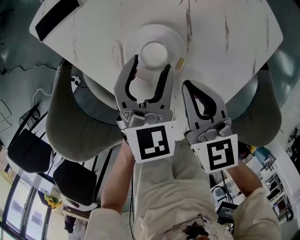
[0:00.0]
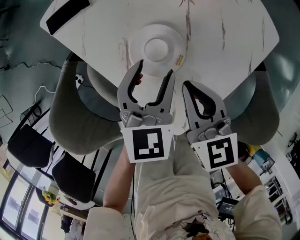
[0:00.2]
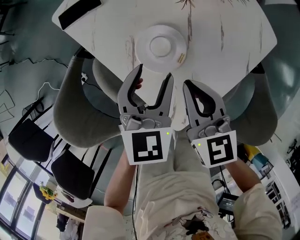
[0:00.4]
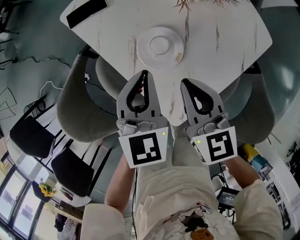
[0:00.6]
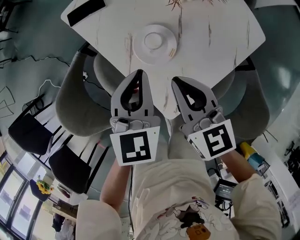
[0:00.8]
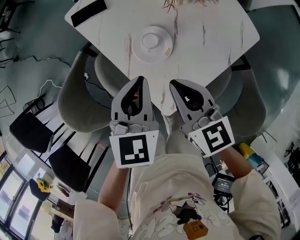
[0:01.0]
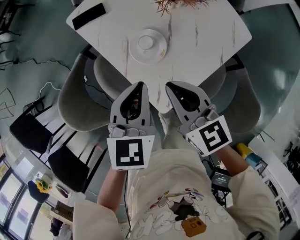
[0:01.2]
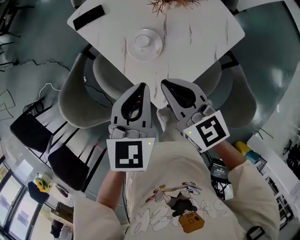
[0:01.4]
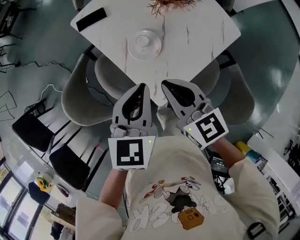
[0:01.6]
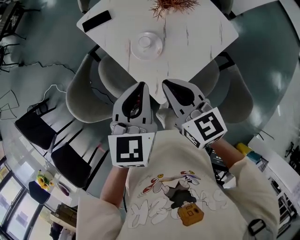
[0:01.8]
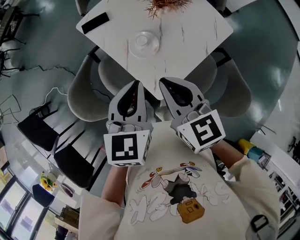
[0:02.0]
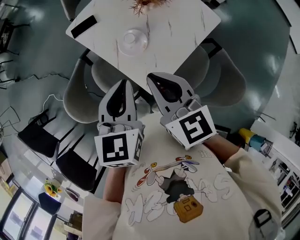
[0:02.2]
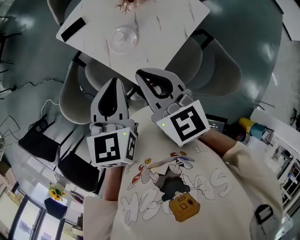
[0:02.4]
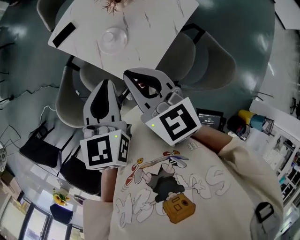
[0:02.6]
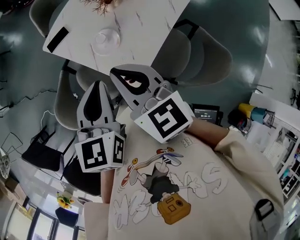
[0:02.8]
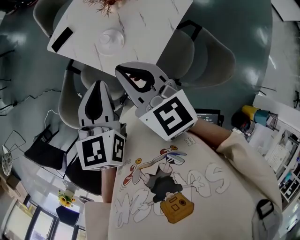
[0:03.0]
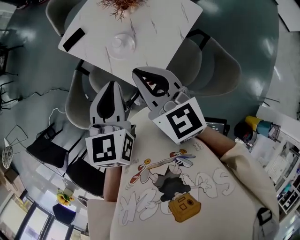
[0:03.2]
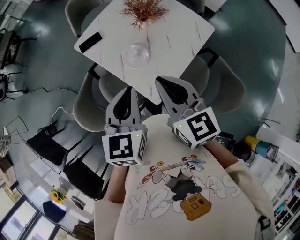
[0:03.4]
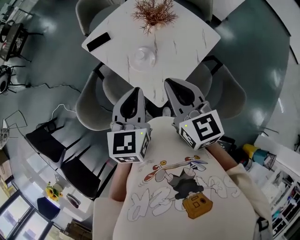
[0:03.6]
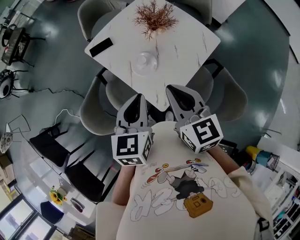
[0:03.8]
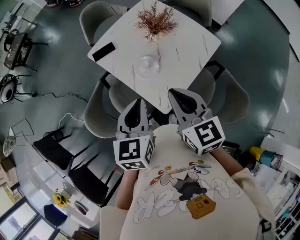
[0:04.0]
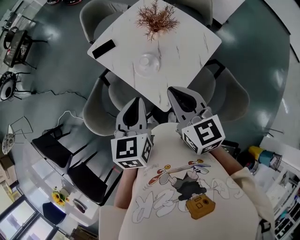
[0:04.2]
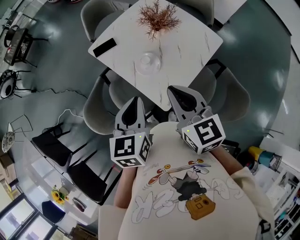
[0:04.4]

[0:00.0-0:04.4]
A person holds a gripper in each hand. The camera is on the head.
0:00.0 to 0:01.4: The left gripper goes about 25 cm upward and backward, and closes its fingers, while the right gripper is displaced upward by some 20 cm.
0:01.4 to 0:03.0: Both grippers travel together upward and backward, about 15 cm.
0:03.0 to 0:04.4: The grippers stay close to where they were, moving slightly.

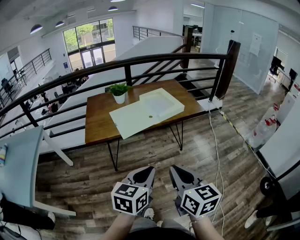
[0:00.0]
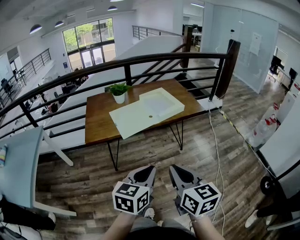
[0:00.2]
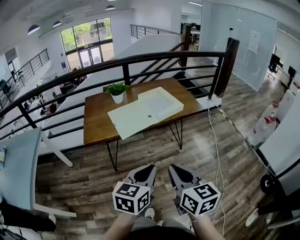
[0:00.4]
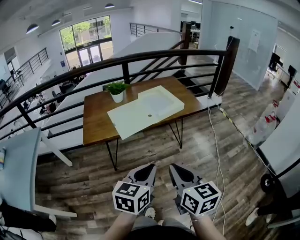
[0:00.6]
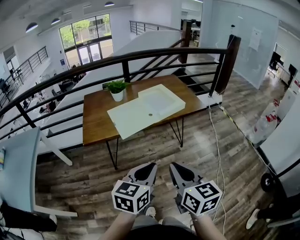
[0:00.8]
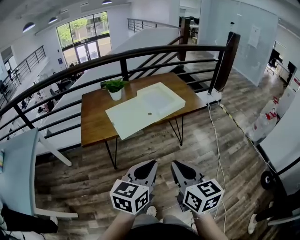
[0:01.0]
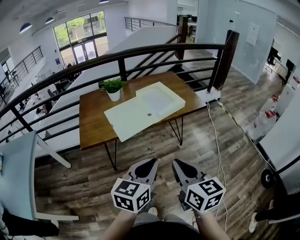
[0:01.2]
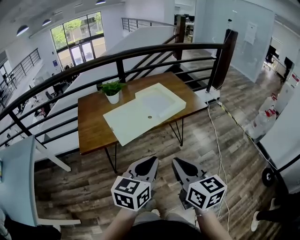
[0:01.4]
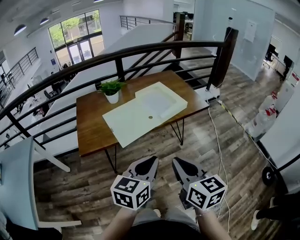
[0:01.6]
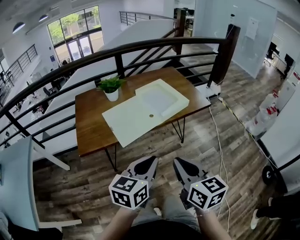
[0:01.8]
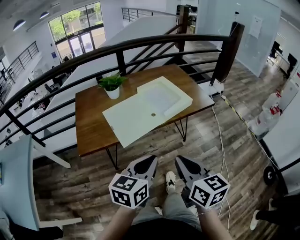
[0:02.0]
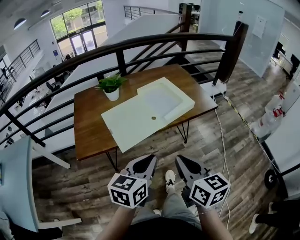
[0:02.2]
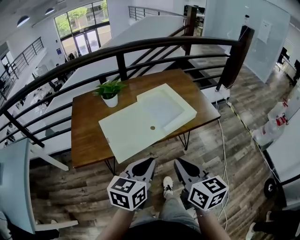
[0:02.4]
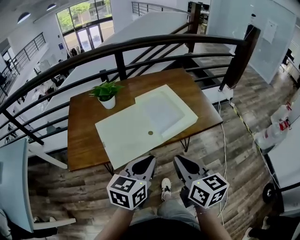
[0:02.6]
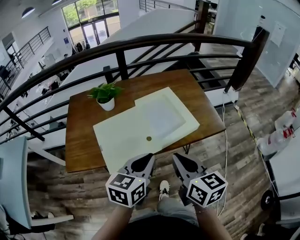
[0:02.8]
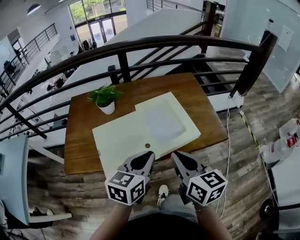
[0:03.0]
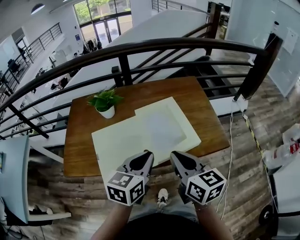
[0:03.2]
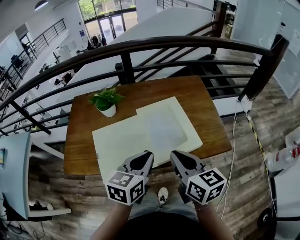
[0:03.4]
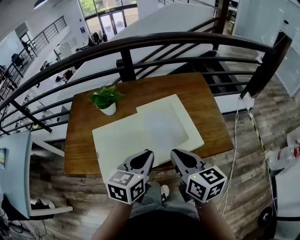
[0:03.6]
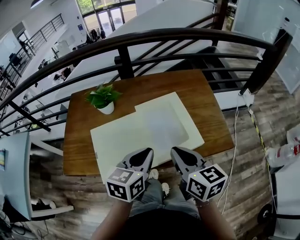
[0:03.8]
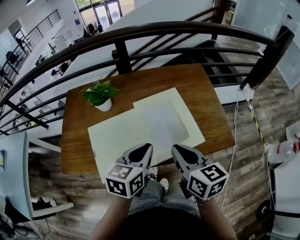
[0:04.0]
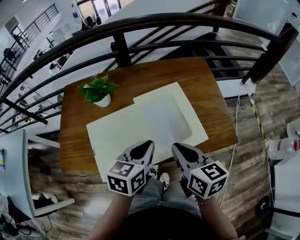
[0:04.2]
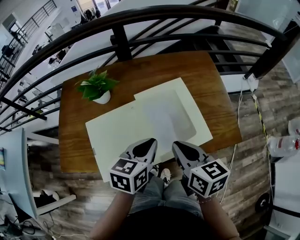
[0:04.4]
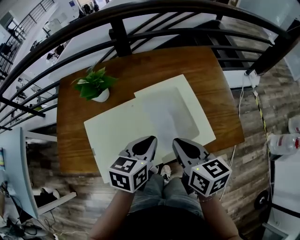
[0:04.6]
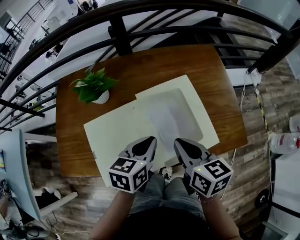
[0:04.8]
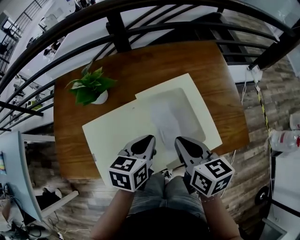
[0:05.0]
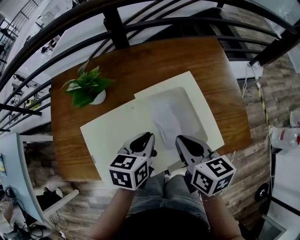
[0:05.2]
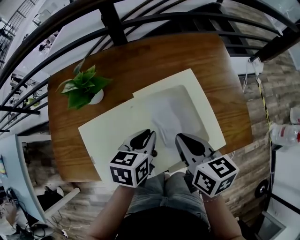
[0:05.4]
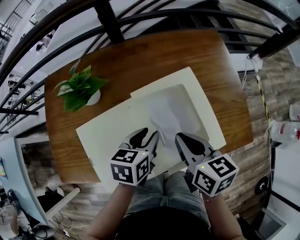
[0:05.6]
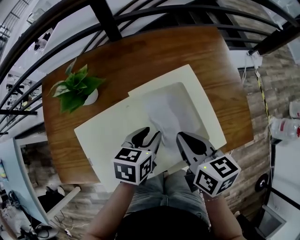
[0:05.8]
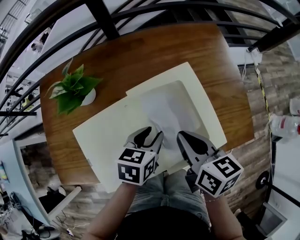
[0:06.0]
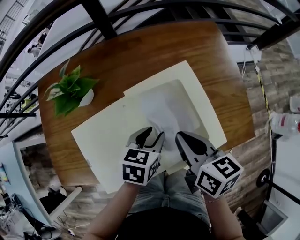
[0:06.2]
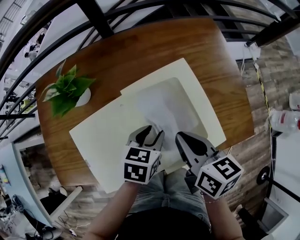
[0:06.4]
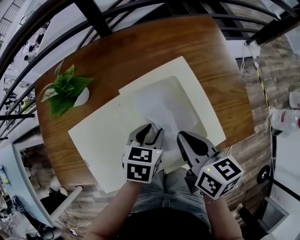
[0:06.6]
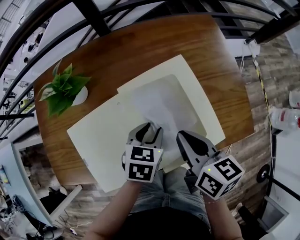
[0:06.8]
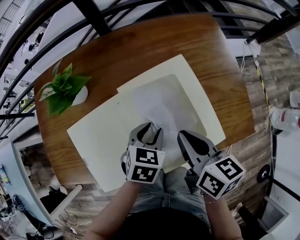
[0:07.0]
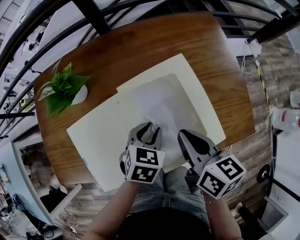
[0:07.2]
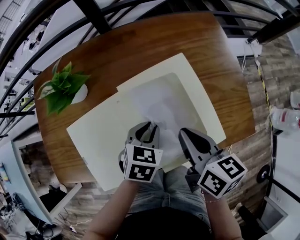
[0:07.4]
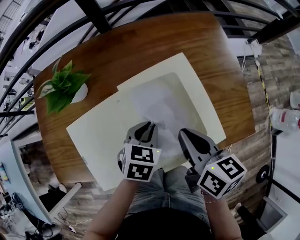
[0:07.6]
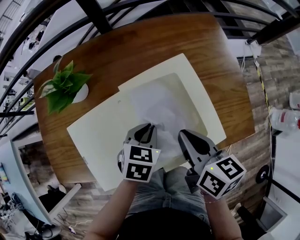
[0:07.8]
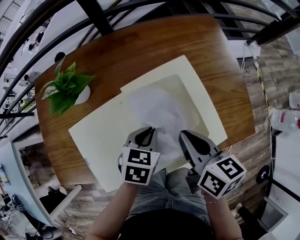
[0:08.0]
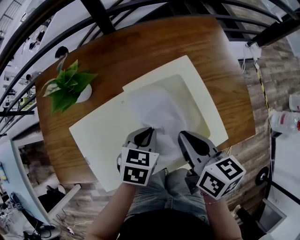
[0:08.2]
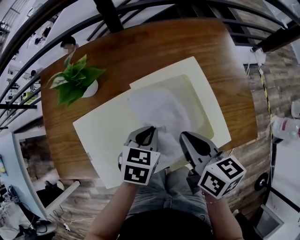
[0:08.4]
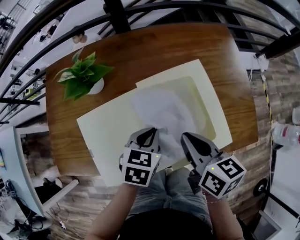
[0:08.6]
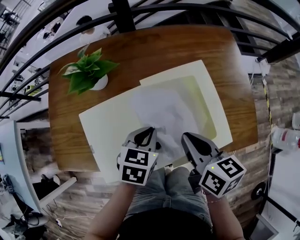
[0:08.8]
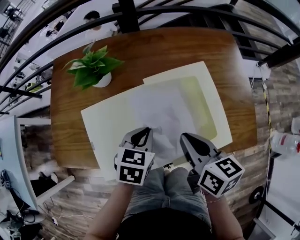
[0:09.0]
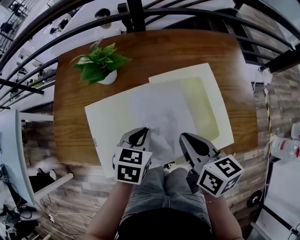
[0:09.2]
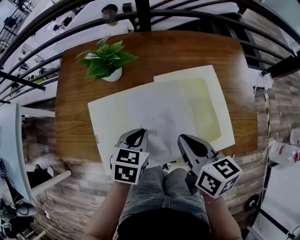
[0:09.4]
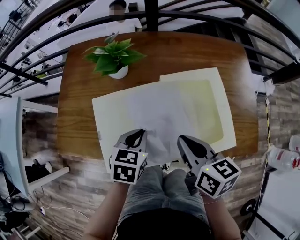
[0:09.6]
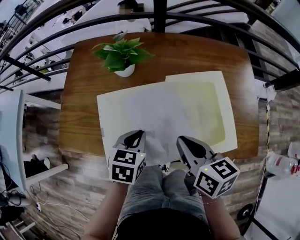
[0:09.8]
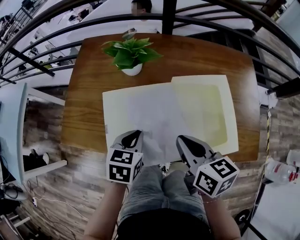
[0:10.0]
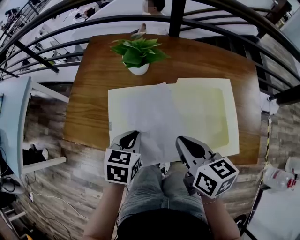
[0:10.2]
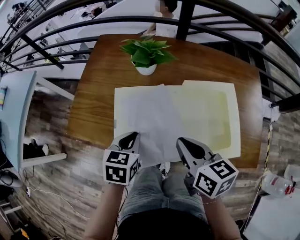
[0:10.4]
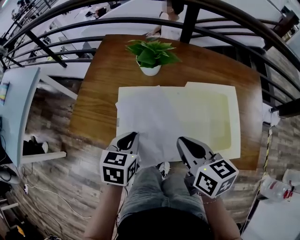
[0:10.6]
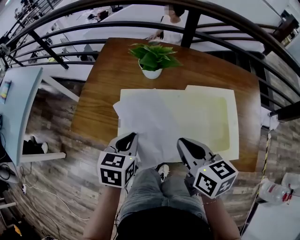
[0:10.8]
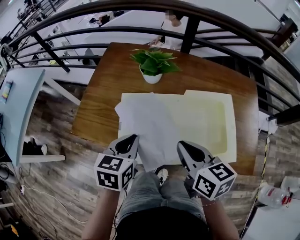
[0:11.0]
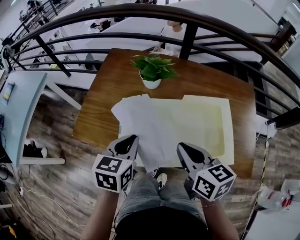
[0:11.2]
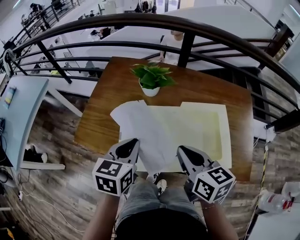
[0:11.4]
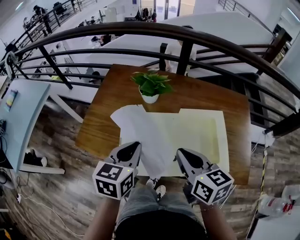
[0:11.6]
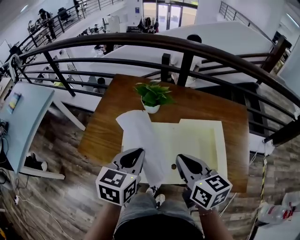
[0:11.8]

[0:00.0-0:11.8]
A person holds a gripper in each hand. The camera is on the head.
0:00.0 to 0:01.4: Both grippers move forward, some 10 cm.
0:01.4 to 0:03.0: Both grippers move forward, roughly 30 cm.
0:03.0 to 0:04.4: The grippers both shift forward and downward by roughly 10 cm.
0:04.4 to 0:06.0: The left gripper is displaced downward and forward by about 10 cm, and opens, while the right gripper shifts approximately 5 cm forward.
0:07.4 to 0:08.8: The left gripper is displaced to the left by some 5 cm.
0:08.8 to 0:10.4: Both grippers travel together to the left, some 15 cm. The left gripper swivels some 20 degrees, while the right gripper swivels roughly 20 degrees.
0:10.4 to 0:11.8: The right gripper shifts about 10 cm upward, while the left gripper heads upward, covering about 15 cm.

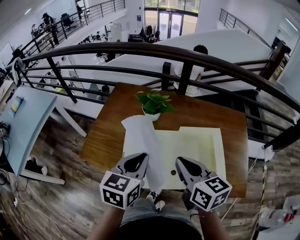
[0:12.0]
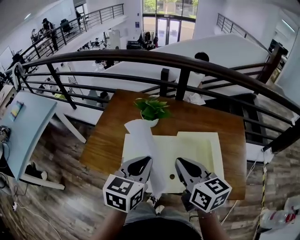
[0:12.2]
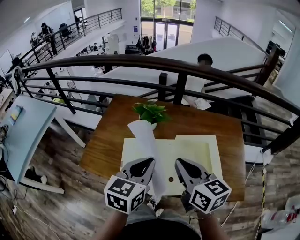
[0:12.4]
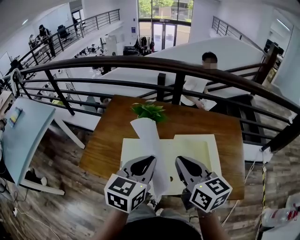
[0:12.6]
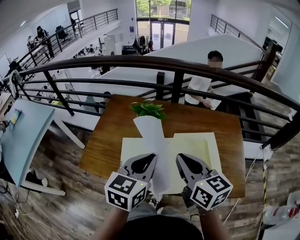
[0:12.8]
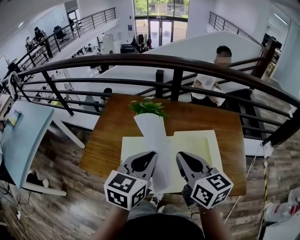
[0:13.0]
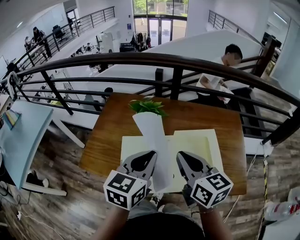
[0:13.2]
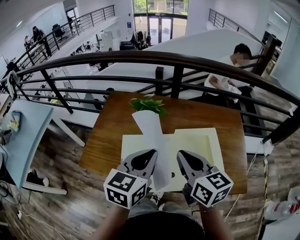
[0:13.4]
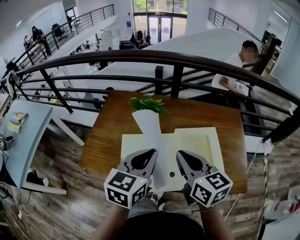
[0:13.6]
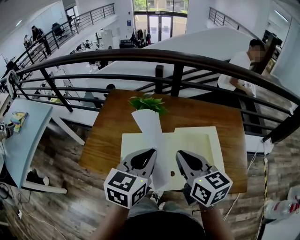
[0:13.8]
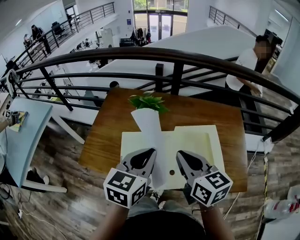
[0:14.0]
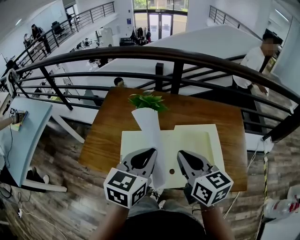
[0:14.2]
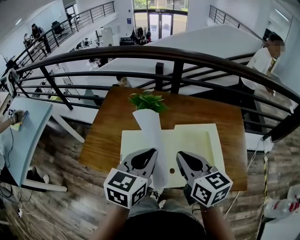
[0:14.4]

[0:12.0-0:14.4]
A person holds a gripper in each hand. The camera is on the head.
0:12.0 to 0:13.2: The left gripper shifts by roughly 5 cm.
0:13.2 to 0:14.4: The grippers make only small movements.

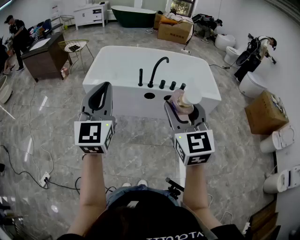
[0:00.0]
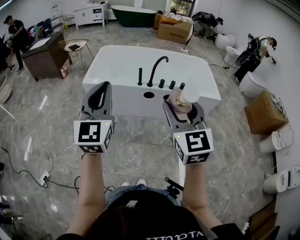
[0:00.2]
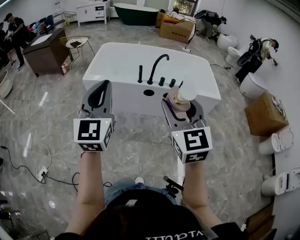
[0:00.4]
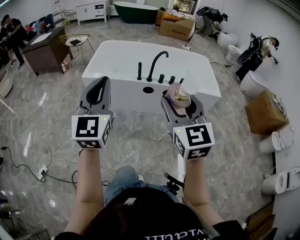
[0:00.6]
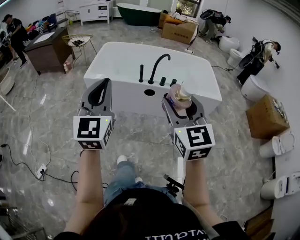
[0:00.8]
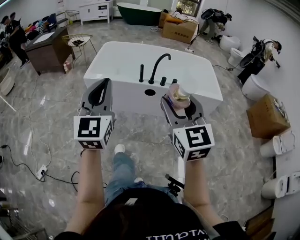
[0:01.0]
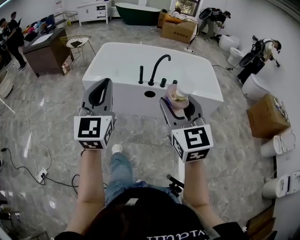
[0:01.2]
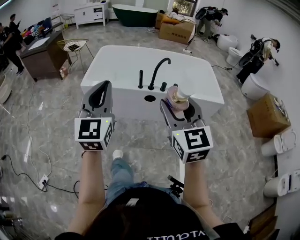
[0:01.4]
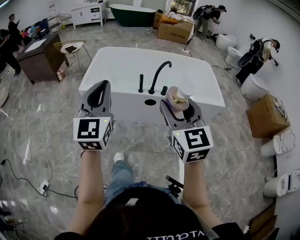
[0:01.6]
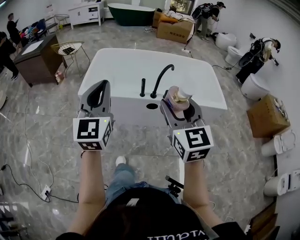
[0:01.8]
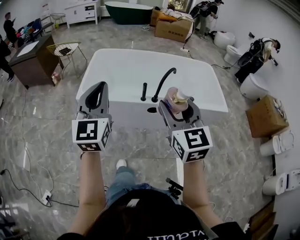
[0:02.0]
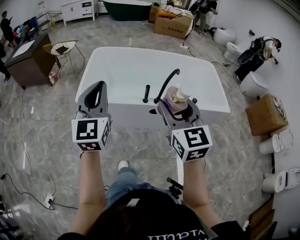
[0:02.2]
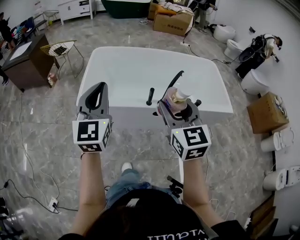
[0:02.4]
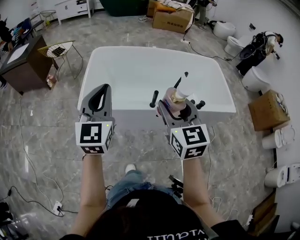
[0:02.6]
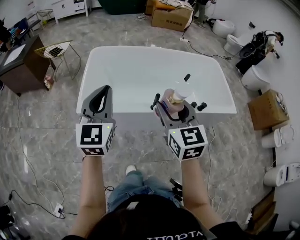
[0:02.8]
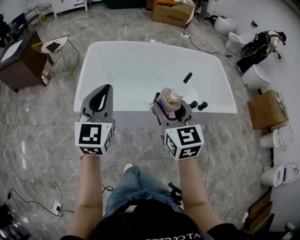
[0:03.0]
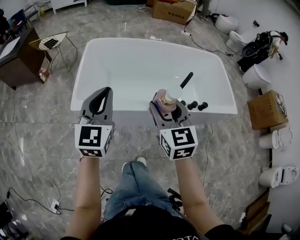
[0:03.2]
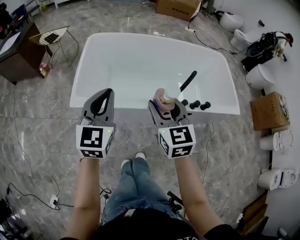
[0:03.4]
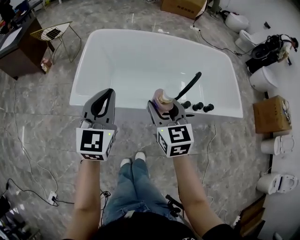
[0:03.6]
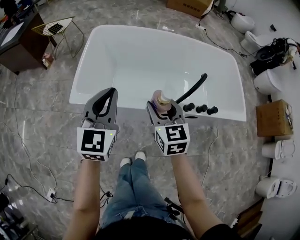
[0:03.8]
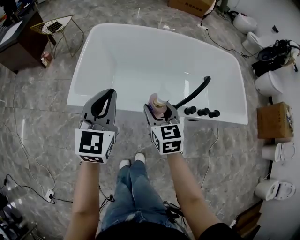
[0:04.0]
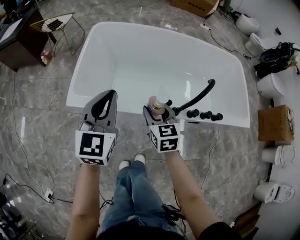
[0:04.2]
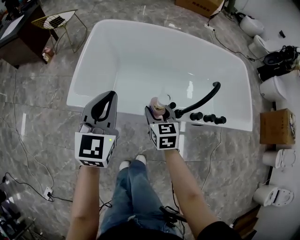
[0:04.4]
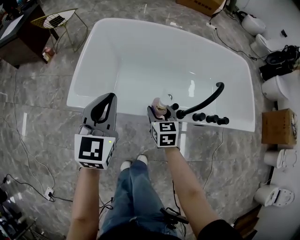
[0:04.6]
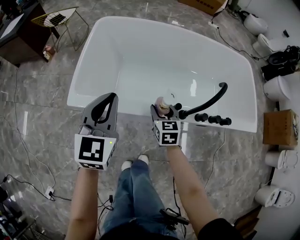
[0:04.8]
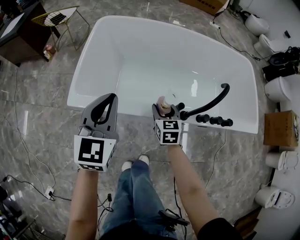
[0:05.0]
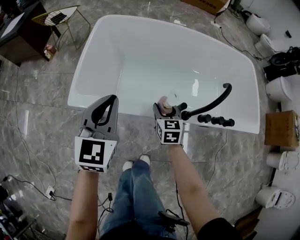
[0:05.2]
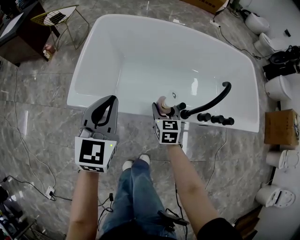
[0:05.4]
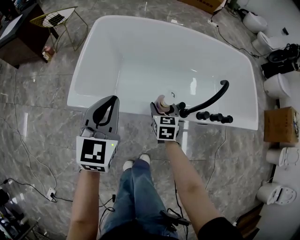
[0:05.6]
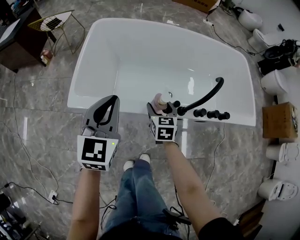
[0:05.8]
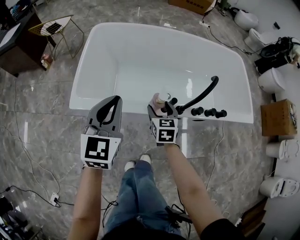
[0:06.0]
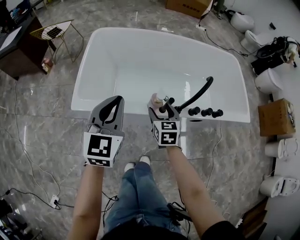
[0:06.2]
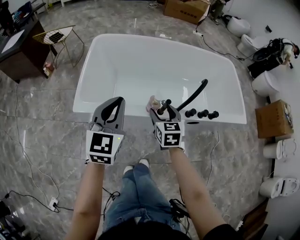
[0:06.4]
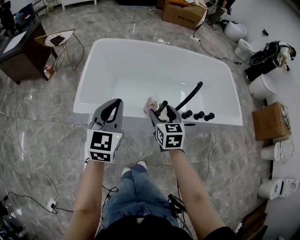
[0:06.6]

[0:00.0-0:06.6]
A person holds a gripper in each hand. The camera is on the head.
0:00.0 to 0:01.6: Both grippers move forward, approximately 15 cm.
0:01.6 to 0:03.2: Both grippers move forward, approximately 35 cm.
0:03.2 to 0:05.0: The left gripper is displaced downward and forward by some 20 cm. The right gripper is displaced downward and forward by approximately 35 cm.
0:05.0 to 0:06.6: The left gripper shifts roughly 10 cm backward and upward; the right gripper moves upward and backward, roughly 20 cm.
